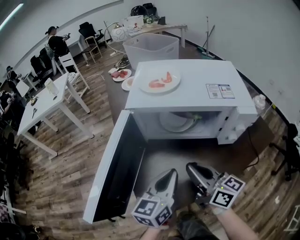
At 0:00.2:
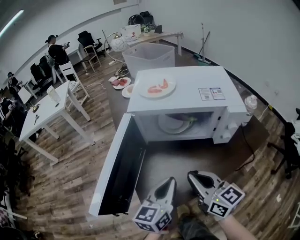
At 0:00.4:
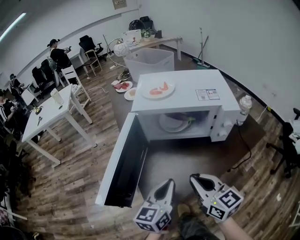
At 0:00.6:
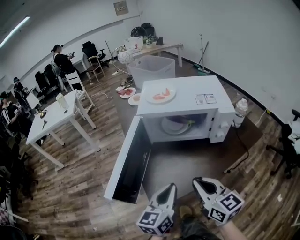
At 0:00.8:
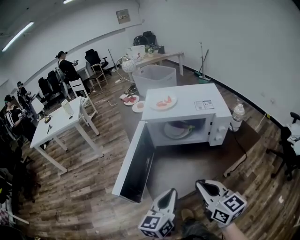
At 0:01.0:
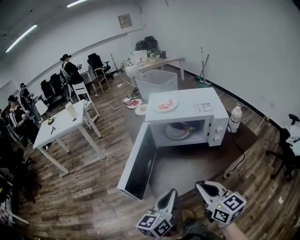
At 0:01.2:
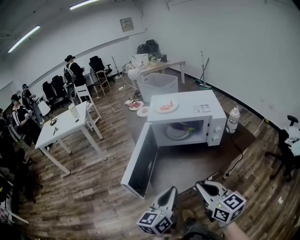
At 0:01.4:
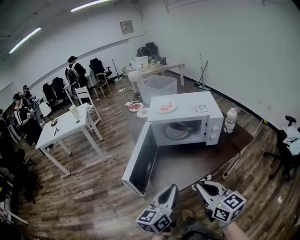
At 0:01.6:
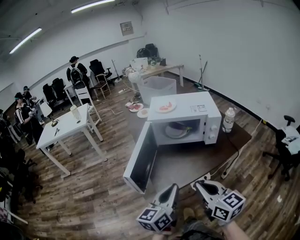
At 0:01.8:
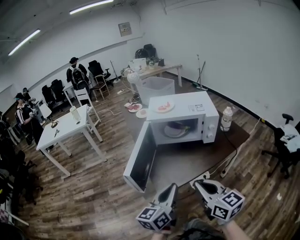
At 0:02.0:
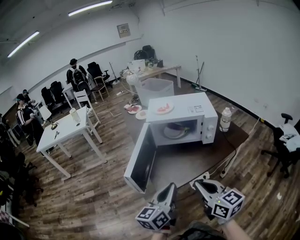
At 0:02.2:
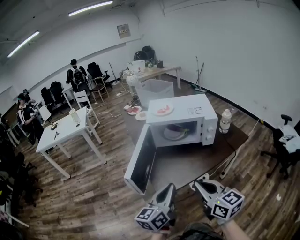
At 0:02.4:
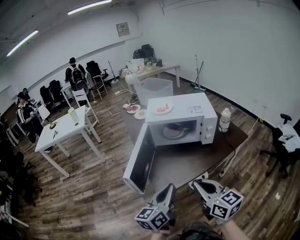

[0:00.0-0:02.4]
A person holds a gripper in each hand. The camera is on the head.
0:00.0 to 0:01.2: The left gripper moves about 20 cm.

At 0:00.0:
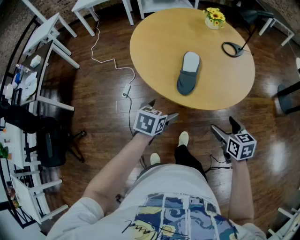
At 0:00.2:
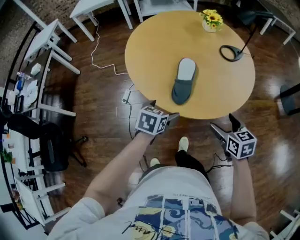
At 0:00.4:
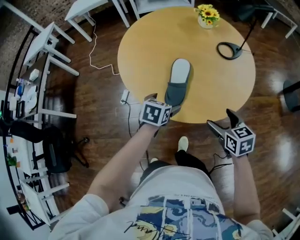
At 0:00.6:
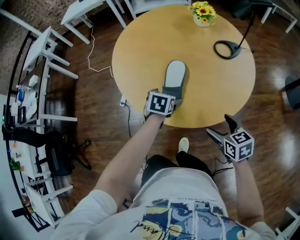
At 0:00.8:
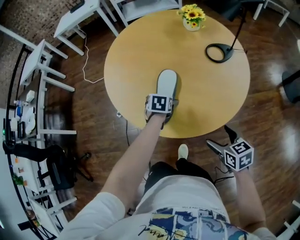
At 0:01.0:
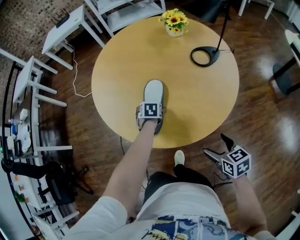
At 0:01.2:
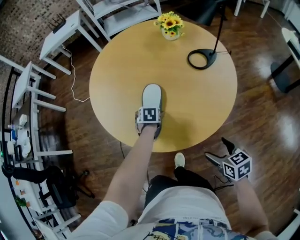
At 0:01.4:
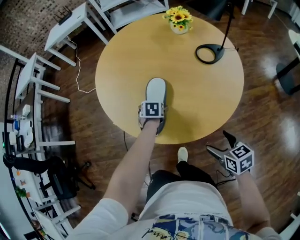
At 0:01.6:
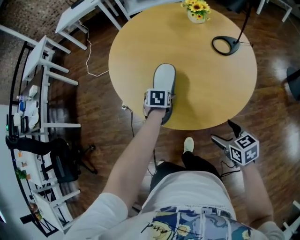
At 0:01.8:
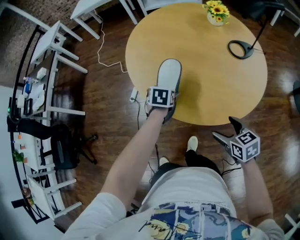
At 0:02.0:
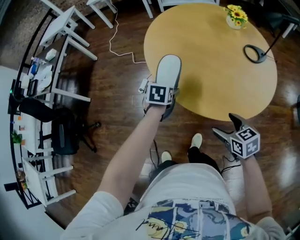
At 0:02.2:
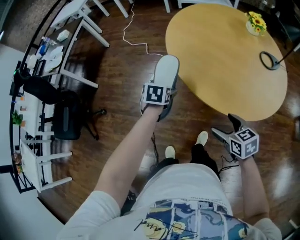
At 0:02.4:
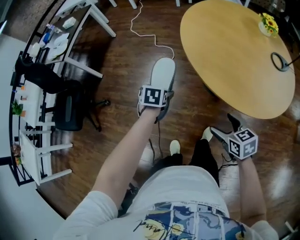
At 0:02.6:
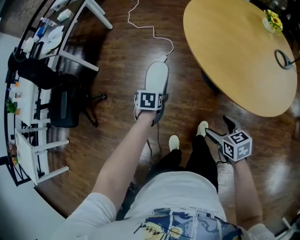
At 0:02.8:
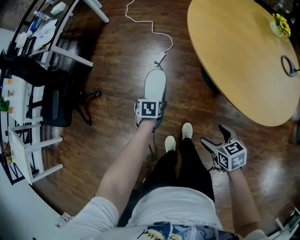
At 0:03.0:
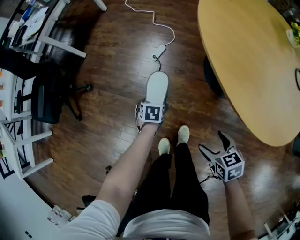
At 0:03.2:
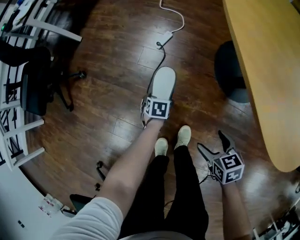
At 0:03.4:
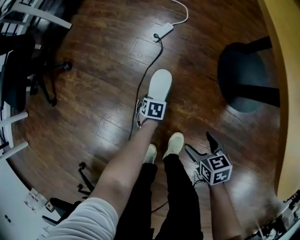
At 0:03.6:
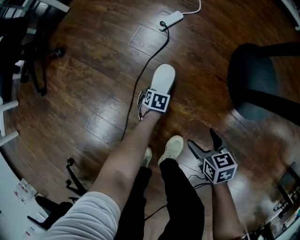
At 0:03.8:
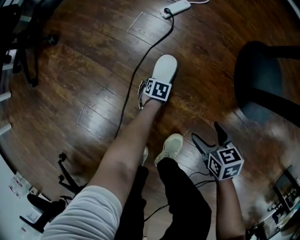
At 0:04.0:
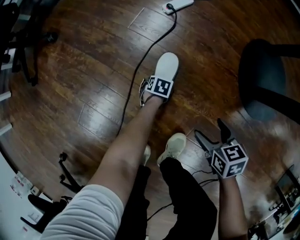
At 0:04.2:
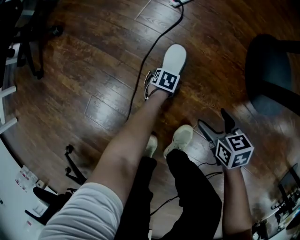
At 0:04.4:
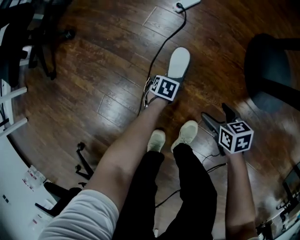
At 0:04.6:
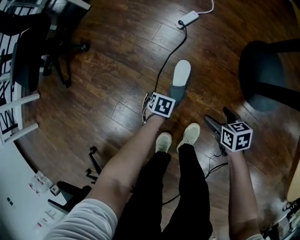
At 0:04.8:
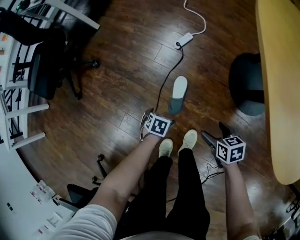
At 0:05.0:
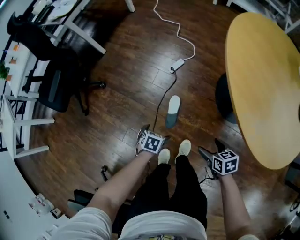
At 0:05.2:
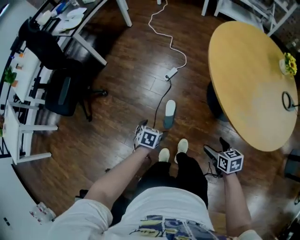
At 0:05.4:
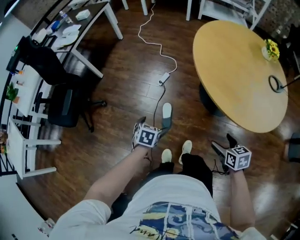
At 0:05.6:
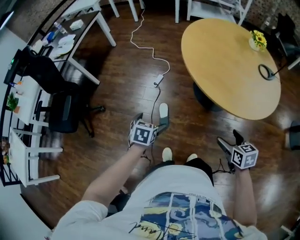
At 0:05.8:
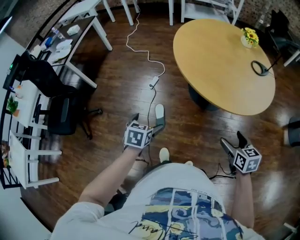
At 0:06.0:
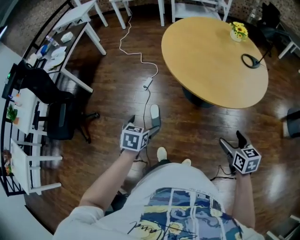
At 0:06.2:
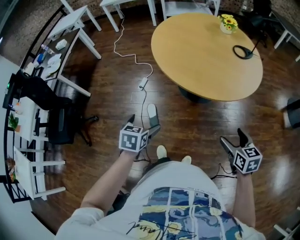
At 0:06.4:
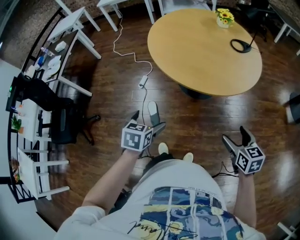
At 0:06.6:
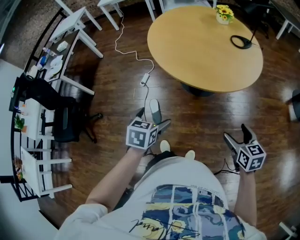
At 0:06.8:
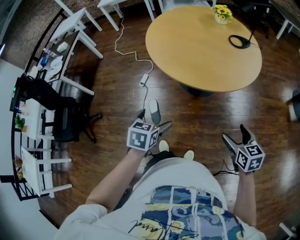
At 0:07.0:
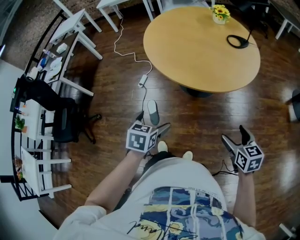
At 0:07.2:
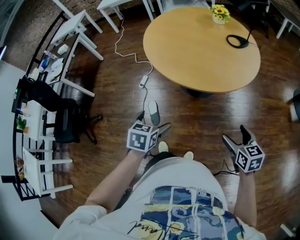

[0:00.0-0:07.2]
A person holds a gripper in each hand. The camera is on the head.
0:00.0 to 0:01.4: The left gripper is displaced forward, to the right and downward by about 40 cm, and turns by about 20 degrees; the right gripper heads to the right and forward, covering some 25 cm.
0:01.4 to 0:02.8: The pair of grippers is taken to the left, roughly 50 cm. The left gripper rotates some 30 degrees, while the right gripper swivels about 30 degrees.
0:02.8 to 0:04.4: Both grippers move downward, some 60 cm.
0:04.4 to 0:05.8: The grippers both shift upward by some 80 cm. The left gripper turns by approximately 40 degrees; the right gripper changes its angle by some 40 degrees.
0:05.8 to 0:07.2: The left gripper moves to the right, roughly 25 cm. Meanwhile the right gripper travels to the right and backward by approximately 25 cm.

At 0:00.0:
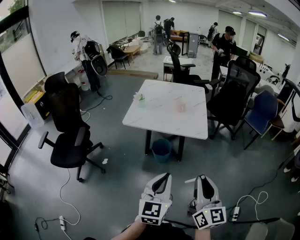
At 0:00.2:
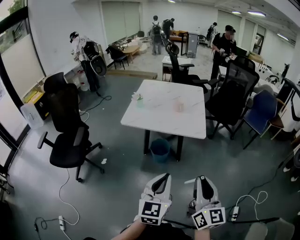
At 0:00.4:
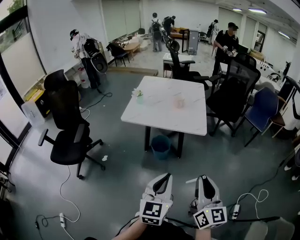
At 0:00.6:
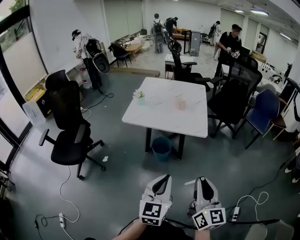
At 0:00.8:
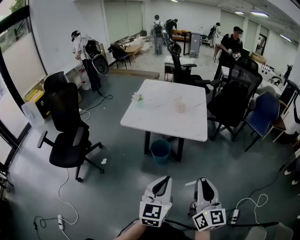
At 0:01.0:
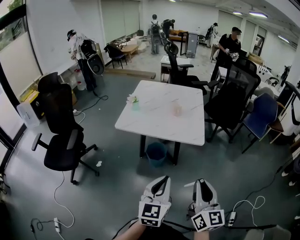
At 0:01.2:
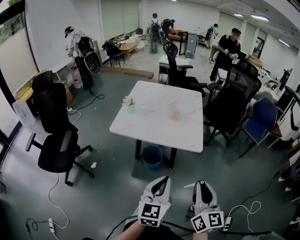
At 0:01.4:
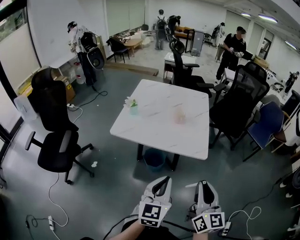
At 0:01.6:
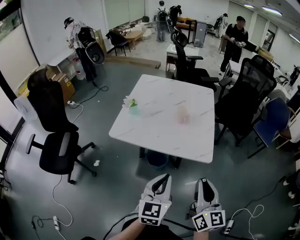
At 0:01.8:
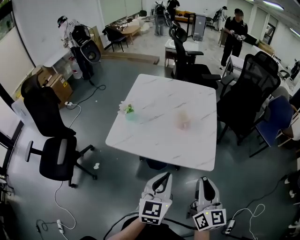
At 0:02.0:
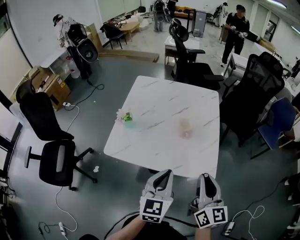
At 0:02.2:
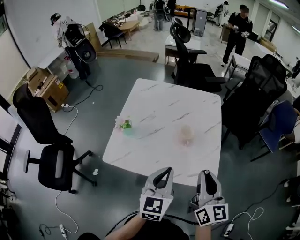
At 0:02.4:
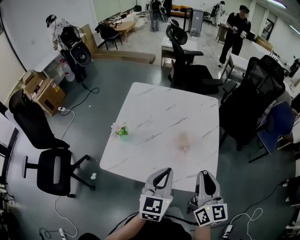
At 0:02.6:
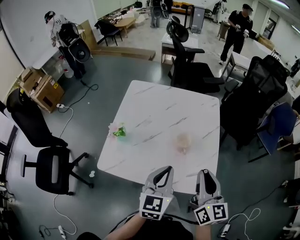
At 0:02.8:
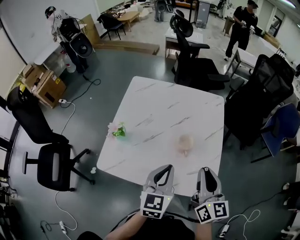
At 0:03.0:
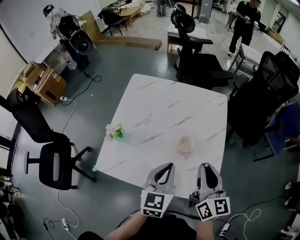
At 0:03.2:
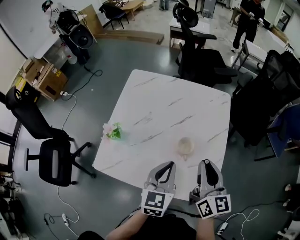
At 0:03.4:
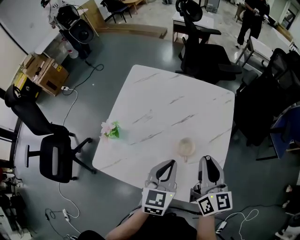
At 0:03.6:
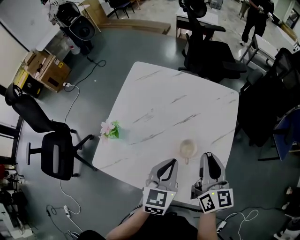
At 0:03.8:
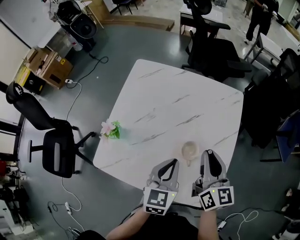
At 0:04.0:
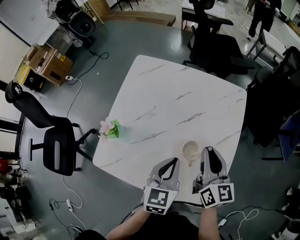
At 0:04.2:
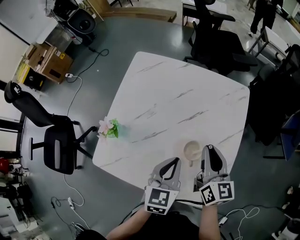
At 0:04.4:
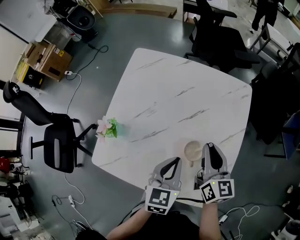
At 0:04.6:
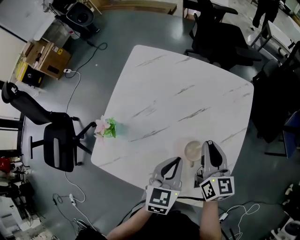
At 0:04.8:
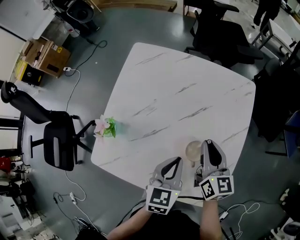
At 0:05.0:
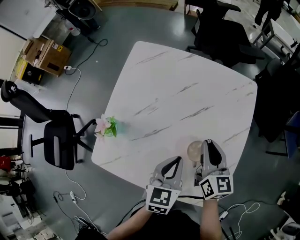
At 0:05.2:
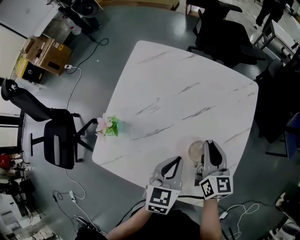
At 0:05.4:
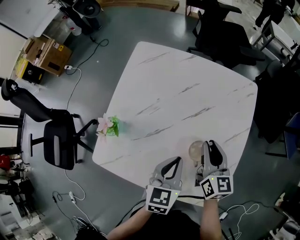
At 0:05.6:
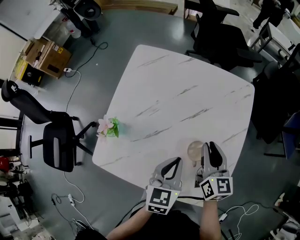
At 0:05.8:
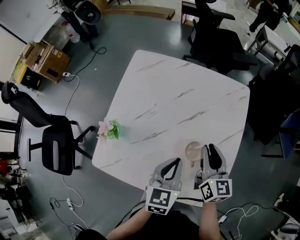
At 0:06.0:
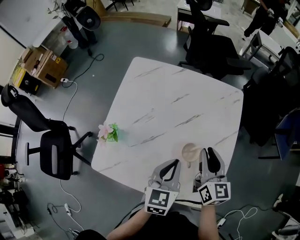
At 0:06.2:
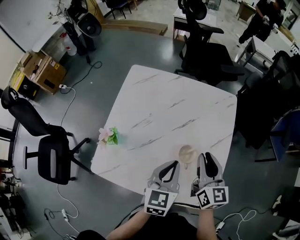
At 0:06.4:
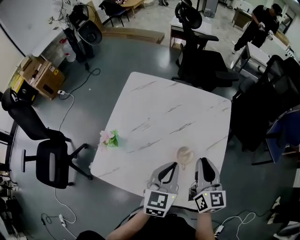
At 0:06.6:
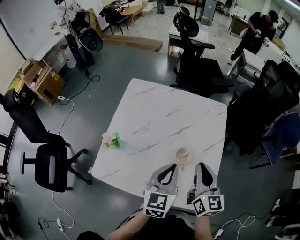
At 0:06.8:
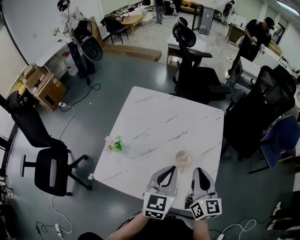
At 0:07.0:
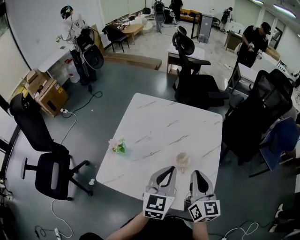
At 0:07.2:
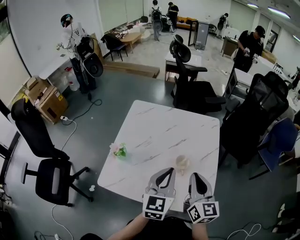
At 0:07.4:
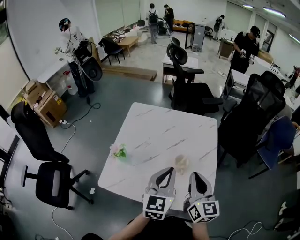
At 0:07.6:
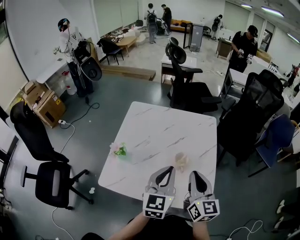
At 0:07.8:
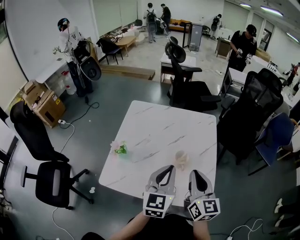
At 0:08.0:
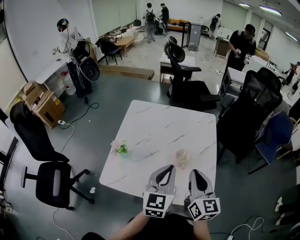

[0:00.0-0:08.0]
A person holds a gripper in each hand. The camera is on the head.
0:00.0 to 0:01.6: The grippers both shift forward by some 25 cm.
0:01.6 to 0:03.2: Both grippers move forward, approximately 35 cm.
0:03.2 to 0:04.8: The right gripper is displaced downward and forward by some 15 cm. Meanwhile the left gripper is displaced downward and forward by roughly 10 cm.
0:04.8 to 0:06.4: The right gripper moves upward and backward, roughly 10 cm; the left gripper shifts roughly 10 cm upward.
0:06.4 to 0:08.0: The left gripper is displaced upward and backward by about 10 cm, while the right gripper shifts about 15 cm backward and upward.

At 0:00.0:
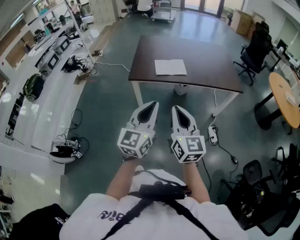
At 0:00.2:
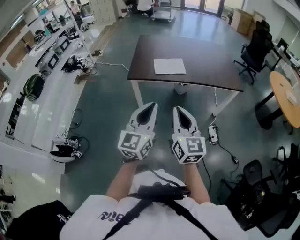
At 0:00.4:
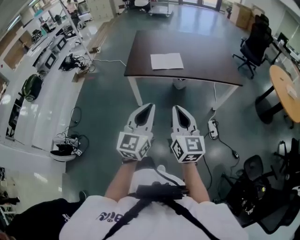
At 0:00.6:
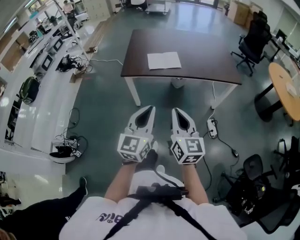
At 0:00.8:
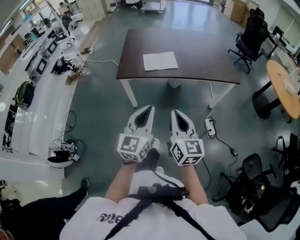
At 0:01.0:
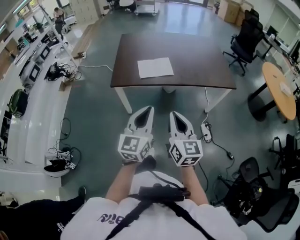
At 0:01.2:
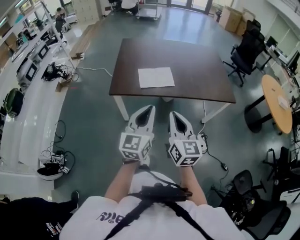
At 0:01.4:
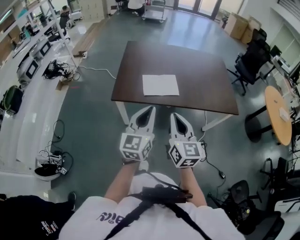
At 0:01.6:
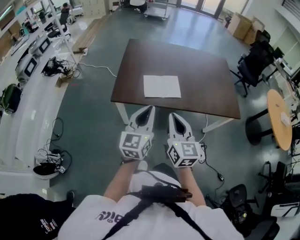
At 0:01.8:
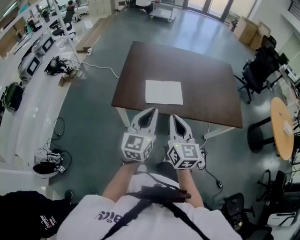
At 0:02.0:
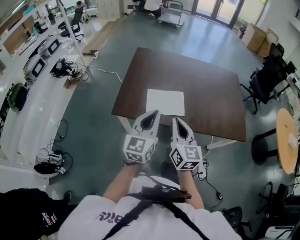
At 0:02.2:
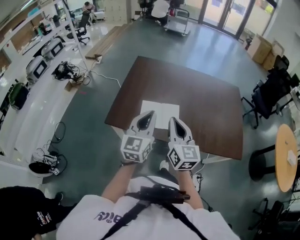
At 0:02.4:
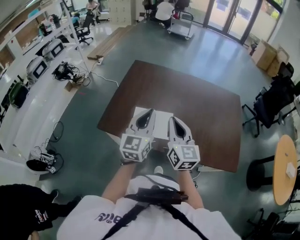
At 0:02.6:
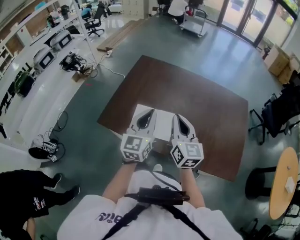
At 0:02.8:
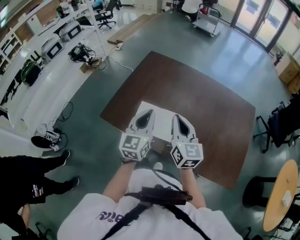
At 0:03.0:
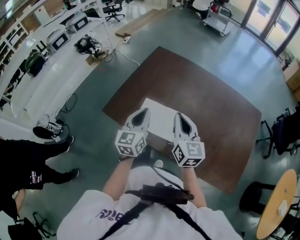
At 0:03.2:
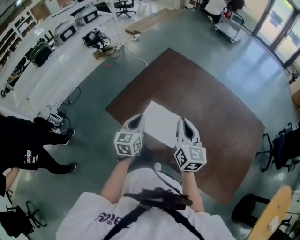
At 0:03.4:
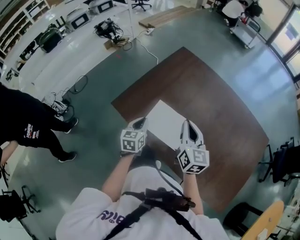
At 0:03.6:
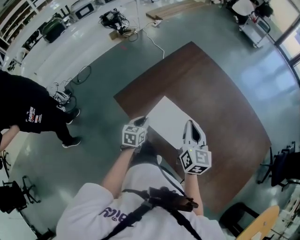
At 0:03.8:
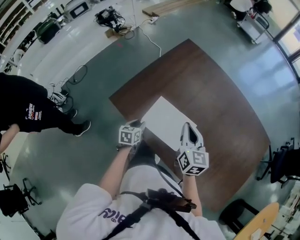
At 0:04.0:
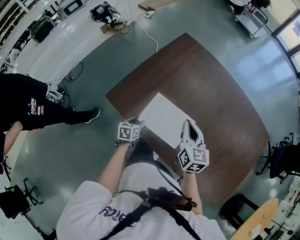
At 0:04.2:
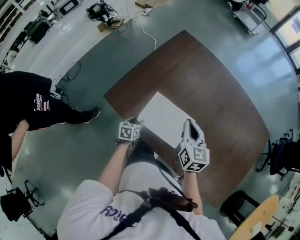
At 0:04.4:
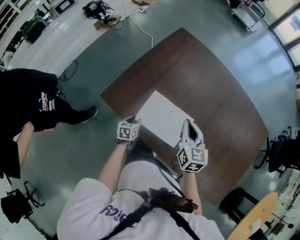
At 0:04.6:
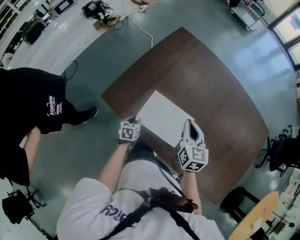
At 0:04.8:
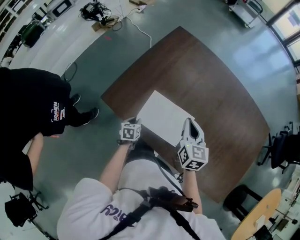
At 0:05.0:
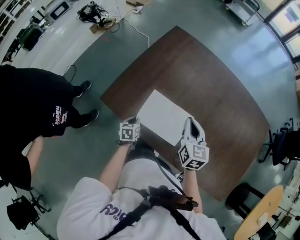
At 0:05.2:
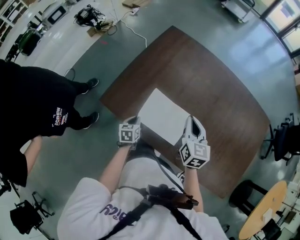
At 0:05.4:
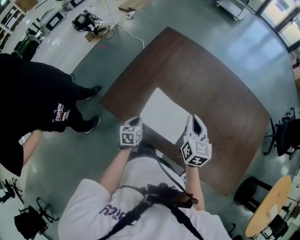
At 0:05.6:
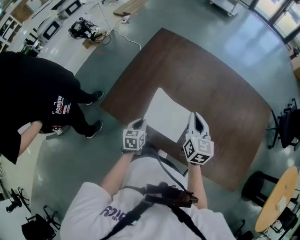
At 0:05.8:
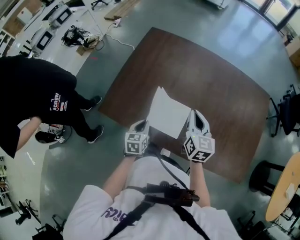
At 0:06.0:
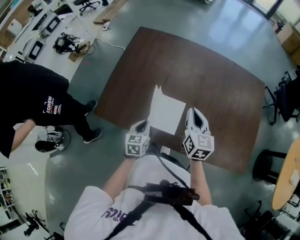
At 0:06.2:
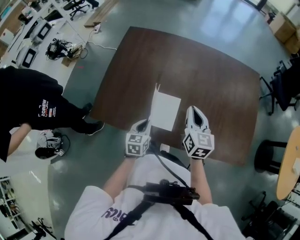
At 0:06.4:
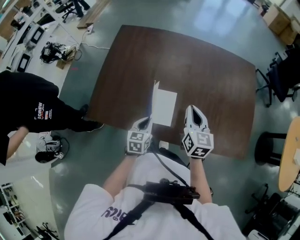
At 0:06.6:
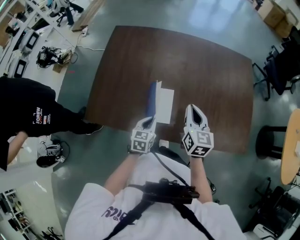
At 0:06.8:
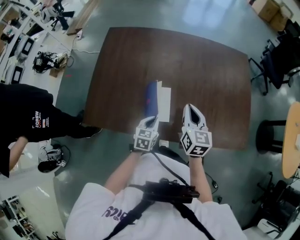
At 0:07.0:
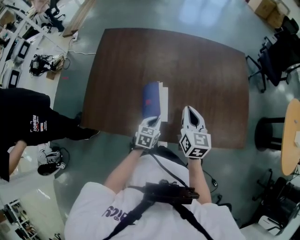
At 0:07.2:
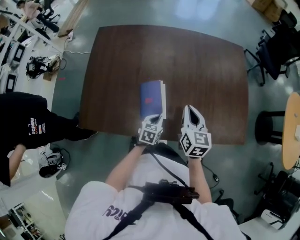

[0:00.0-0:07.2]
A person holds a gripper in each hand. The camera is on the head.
0:00.0 to 0:01.4: The grippers both shift forward by about 25 cm.
0:01.4 to 0:02.8: Both grippers travel together forward and to the right, roughly 40 cm. The right gripper swivels some 20 degrees; the left gripper rotates roughly 20 degrees.
0:02.8 to 0:04.4: The right gripper heads downward and forward, covering roughly 20 cm, and turns by approximately 20 degrees. Meanwhile the left gripper is displaced downward by some 40 cm, angles its fingers downward, by roughly 50 degrees, and opens its fingers.
0:04.4 to 0:05.8: The left gripper moves upward and to the right, roughly 15 cm, swivels roughly 20 degrees, and closes, while the right gripper goes roughly 5 cm to the right.
0:05.8 to 0:07.2: The right gripper changes place by about 15 cm. The left gripper shifts by approximately 25 cm, and rotates roughly 40 degrees.
